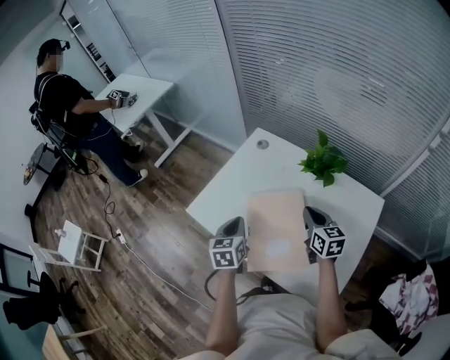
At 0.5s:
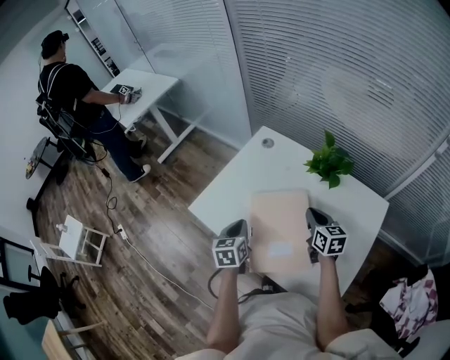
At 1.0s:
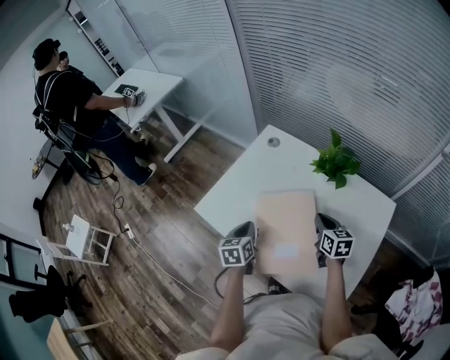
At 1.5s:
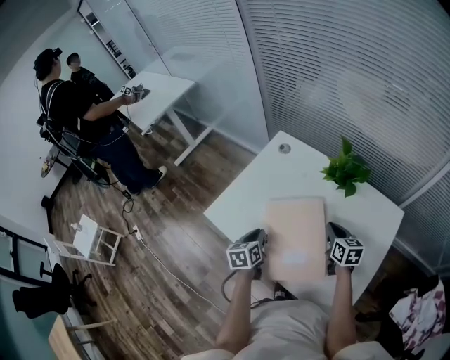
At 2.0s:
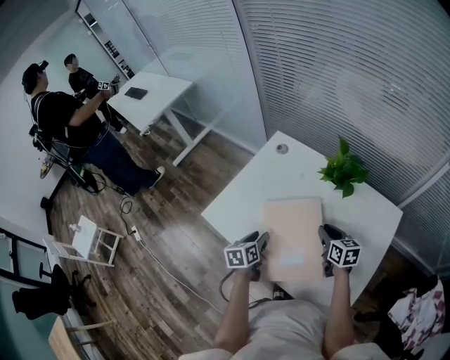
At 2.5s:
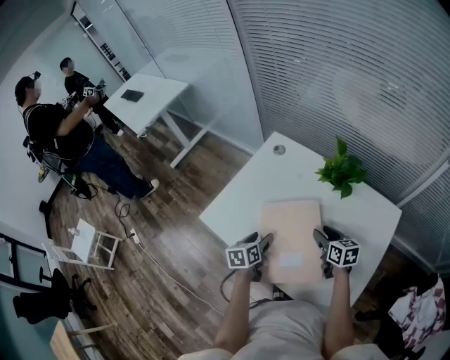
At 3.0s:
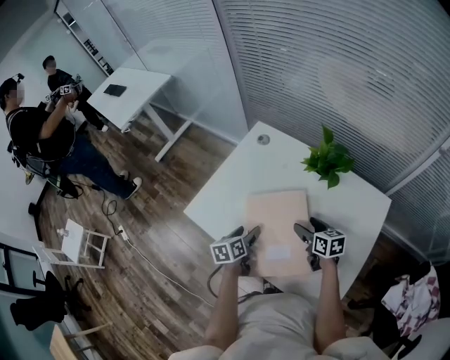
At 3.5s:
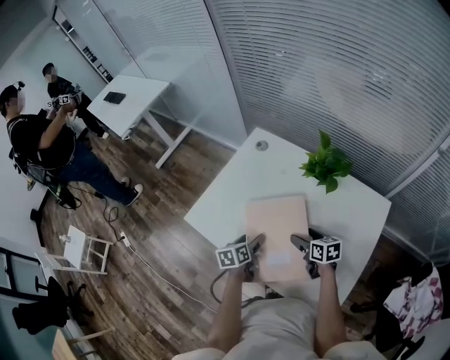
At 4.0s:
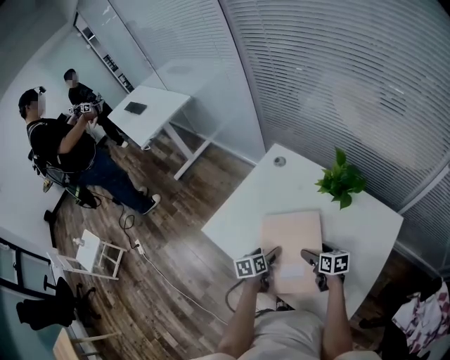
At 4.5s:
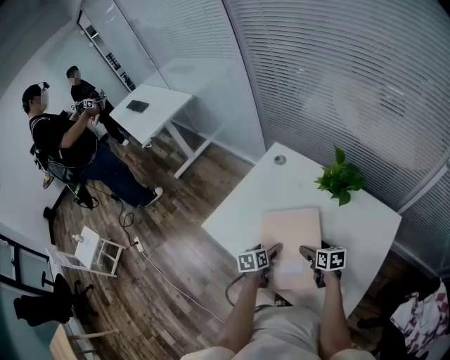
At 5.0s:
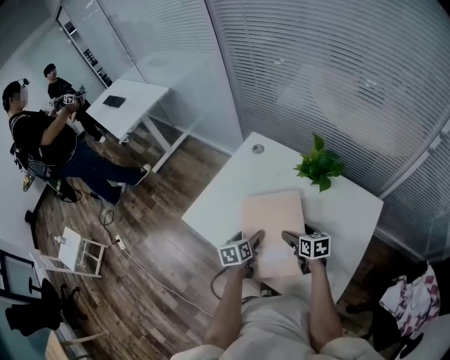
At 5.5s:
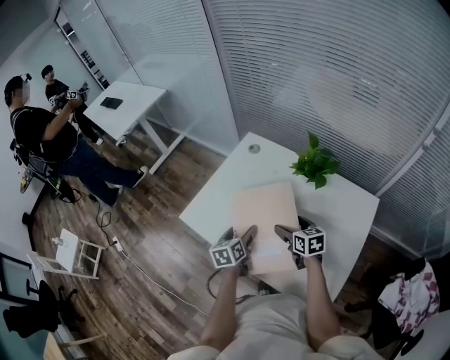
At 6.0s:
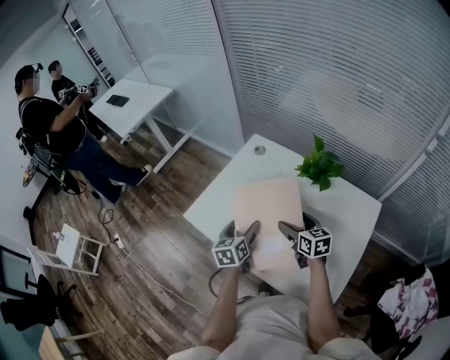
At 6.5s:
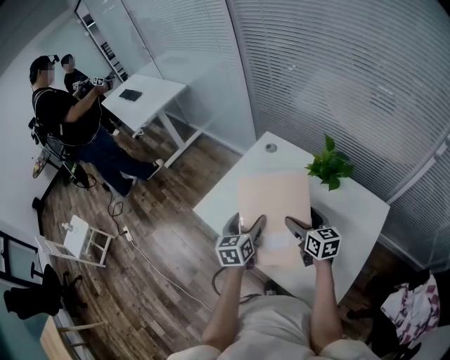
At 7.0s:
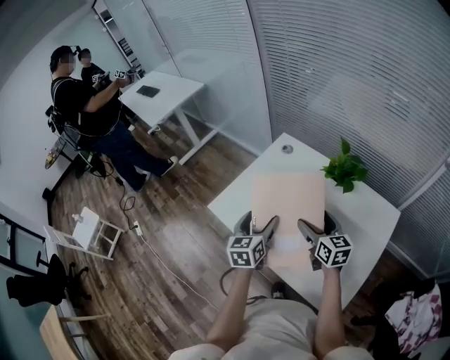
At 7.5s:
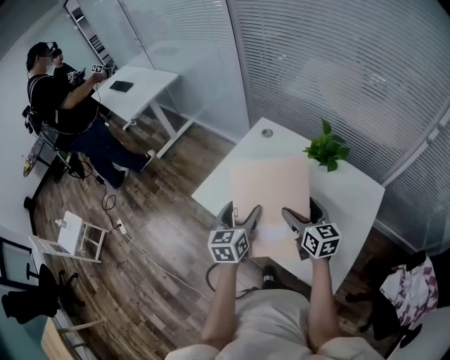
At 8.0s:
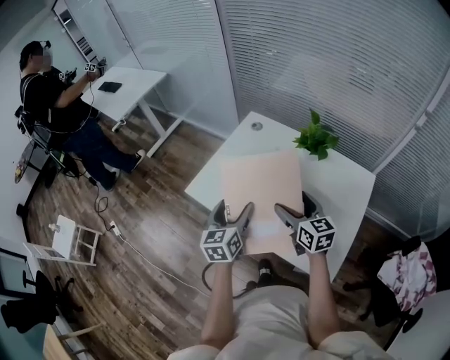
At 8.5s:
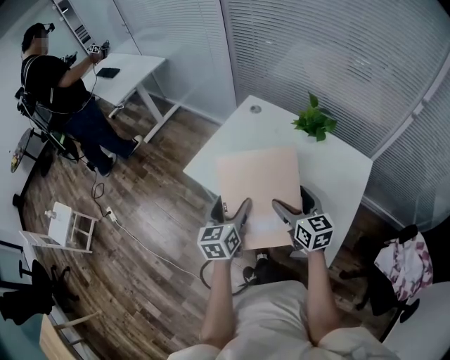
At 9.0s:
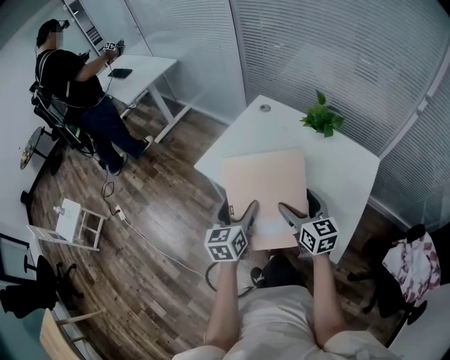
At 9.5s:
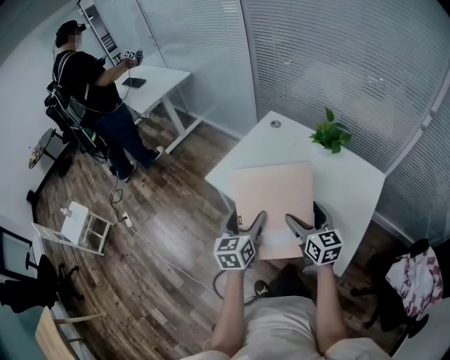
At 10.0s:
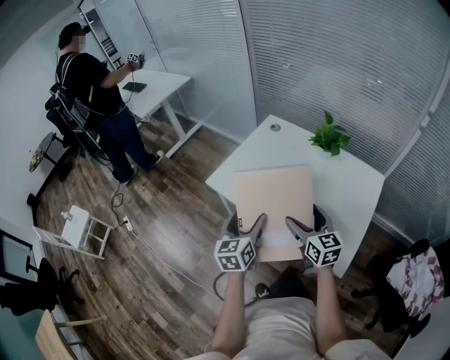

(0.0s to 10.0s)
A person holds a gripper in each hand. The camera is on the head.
0.0s - 2.0s: Both grippers move downward, some 10 cm. The left gripper turns by some 20 degrees, and opens.
2.0s - 4.0s: The two grippers go some 5 cm downward. The right gripper opens. The left gripper opens up.
4.0s - 6.0s: Both grippers travel together upward, about 10 cm. The left gripper changes its angle by approximately 20 degrees.
6.0s - 8.0s: The grippers both shift upward, backward and to the left by approximately 15 cm.
8.0s - 10.0s: The two grippers go some 10 cm backward.

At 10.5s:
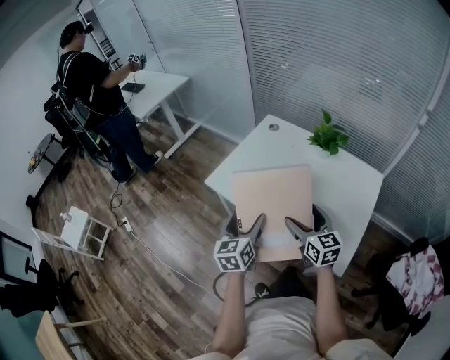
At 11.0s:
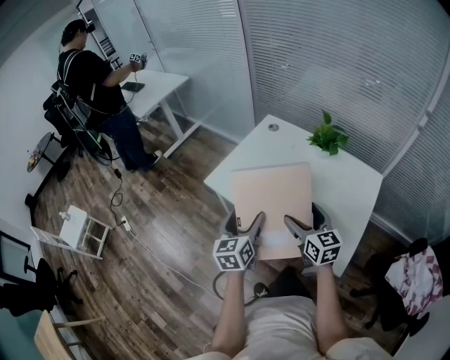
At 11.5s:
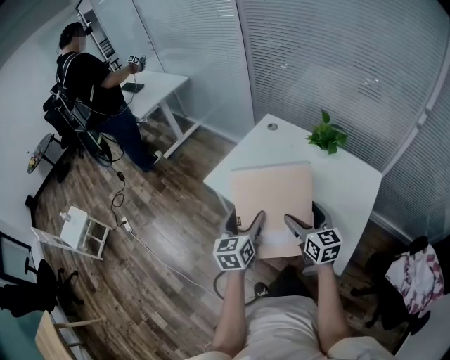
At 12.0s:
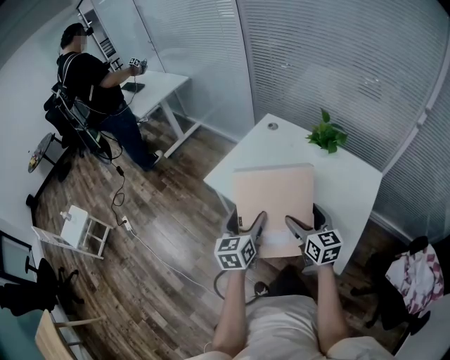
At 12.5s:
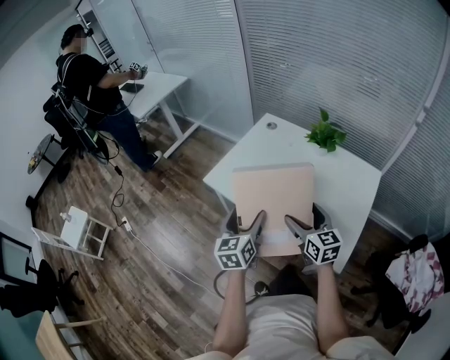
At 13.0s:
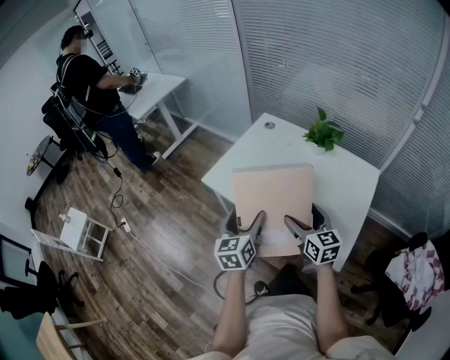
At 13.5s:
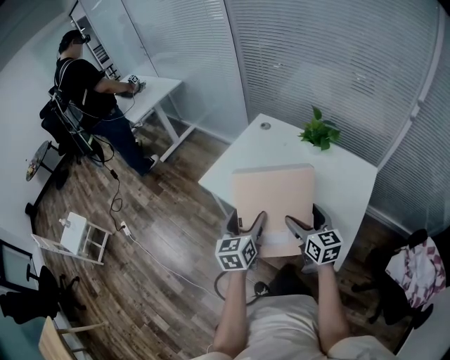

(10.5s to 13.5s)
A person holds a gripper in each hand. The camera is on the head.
10.5s - 12.0s: Both grippers stay put.
12.0s - 13.5s: The grippers move only a little.

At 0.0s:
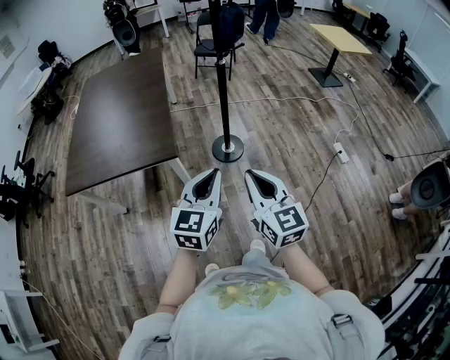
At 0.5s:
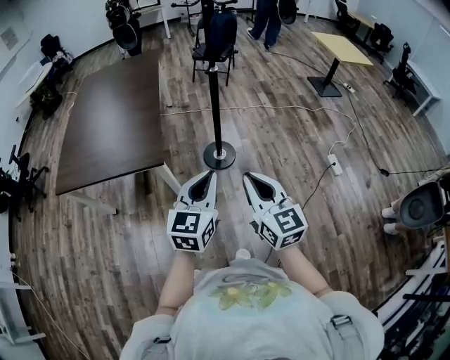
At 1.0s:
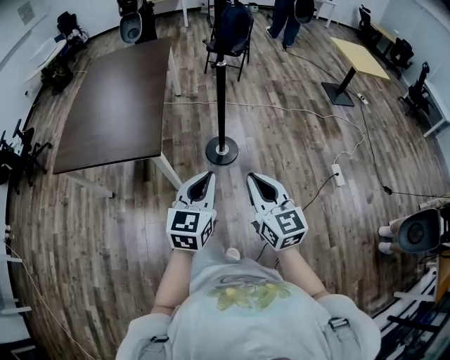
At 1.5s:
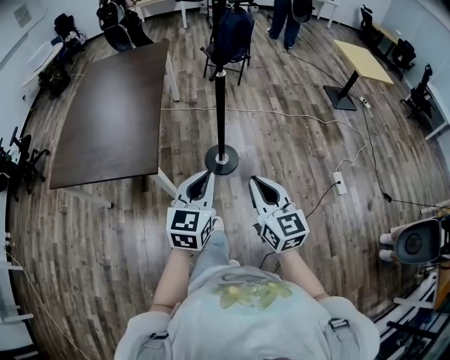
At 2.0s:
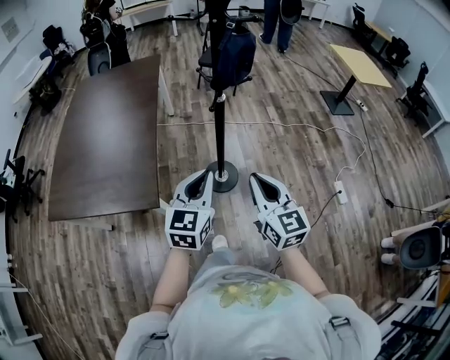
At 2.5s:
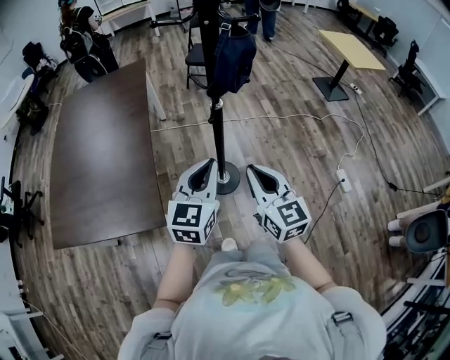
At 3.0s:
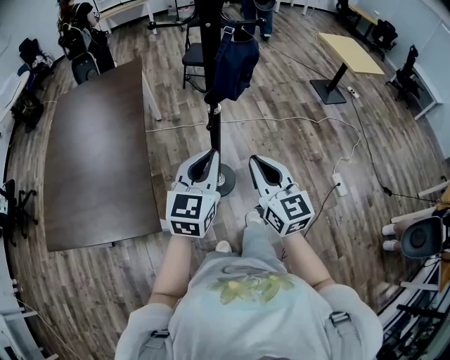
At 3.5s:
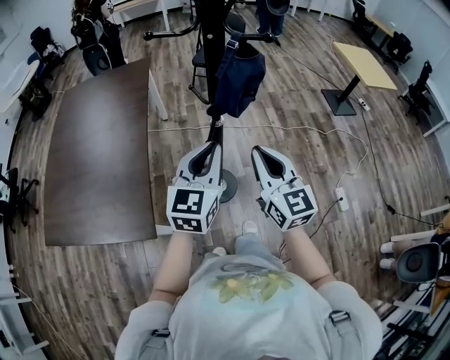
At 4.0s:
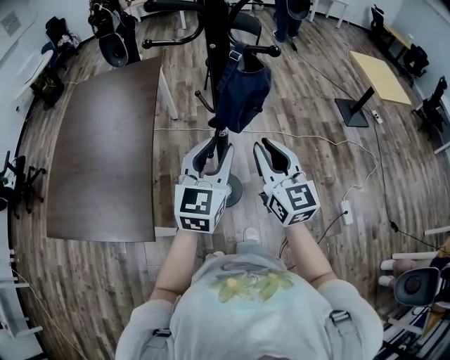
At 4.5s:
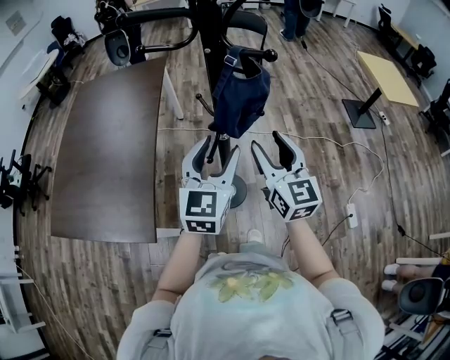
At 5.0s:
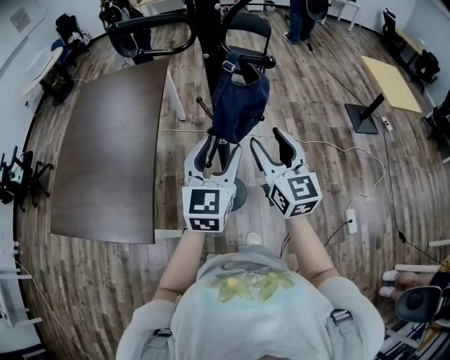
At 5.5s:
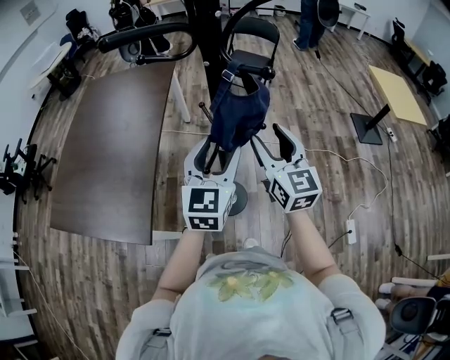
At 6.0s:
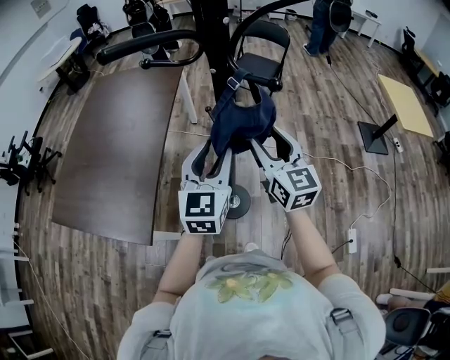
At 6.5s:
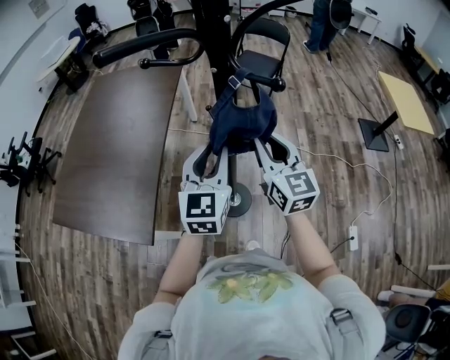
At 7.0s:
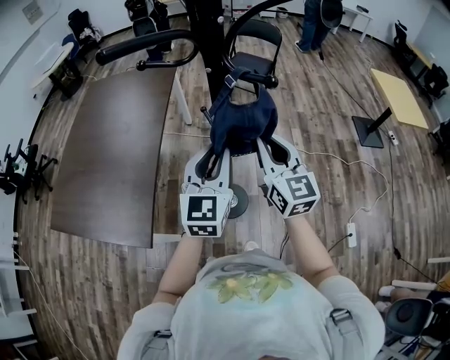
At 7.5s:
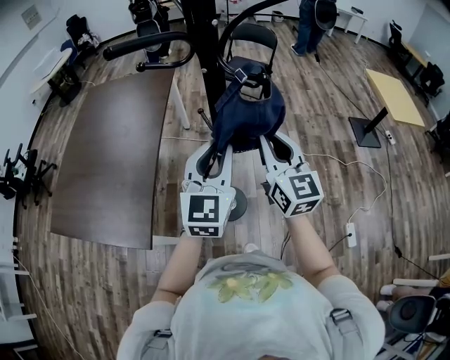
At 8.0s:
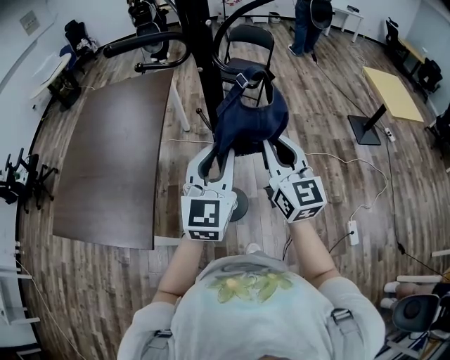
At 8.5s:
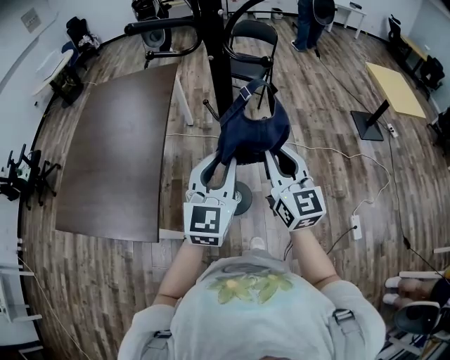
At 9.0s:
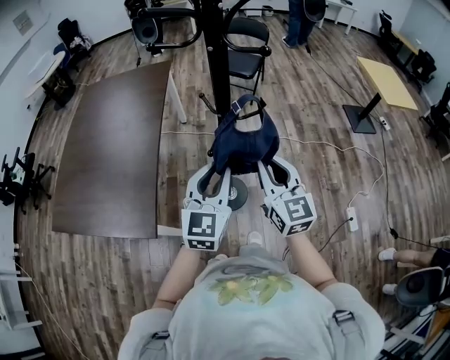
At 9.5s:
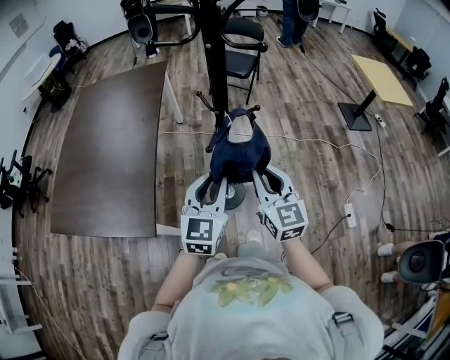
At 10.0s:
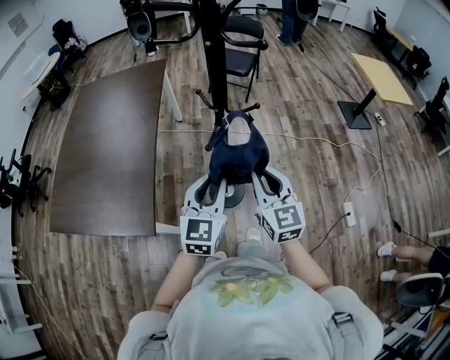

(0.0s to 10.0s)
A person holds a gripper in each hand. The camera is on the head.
0.0s - 2.0s: Both grippers travel together forward, roughly 30 cm.
2.0s - 4.0s: Both grippers travel together forward, about 25 cm. The left gripper opens its fingers.
4.0s - 6.0s: The left gripper is displaced forward by approximately 5 cm. Meanwhile the right gripper is displaced forward by some 10 cm, and opens up.
6.0s - 8.0s: The left gripper changes place by roughly 5 cm, and closes. The right gripper goes roughly 5 cm backward, and closes up.
8.0s - 10.0s: The left gripper goes about 15 cm downward and backward. The right gripper heads backward and downward, covering roughly 15 cm.

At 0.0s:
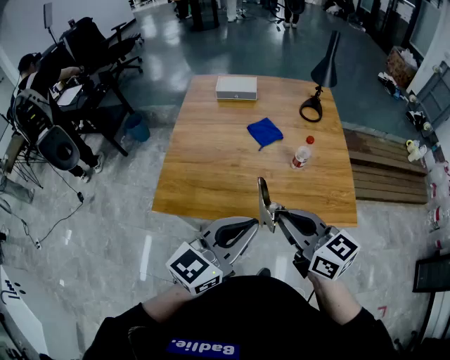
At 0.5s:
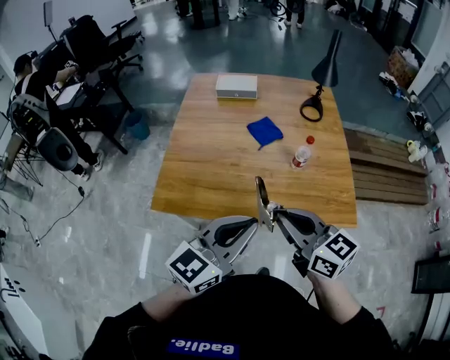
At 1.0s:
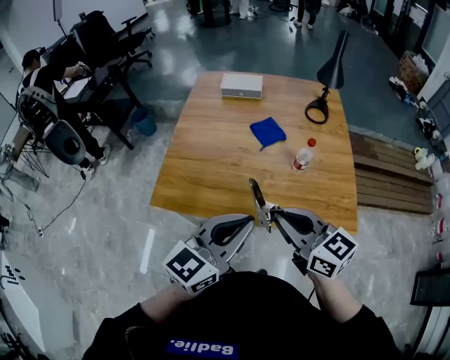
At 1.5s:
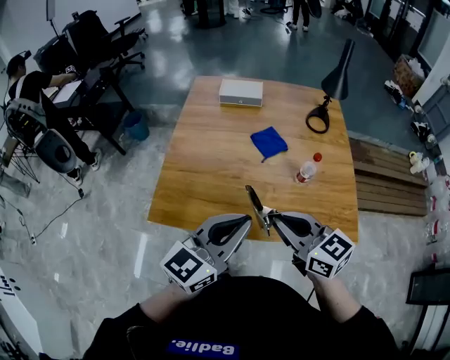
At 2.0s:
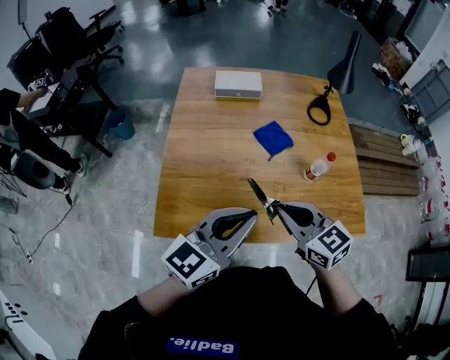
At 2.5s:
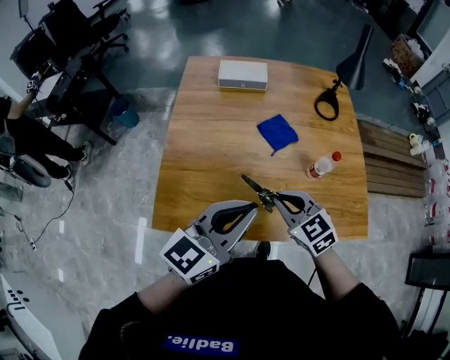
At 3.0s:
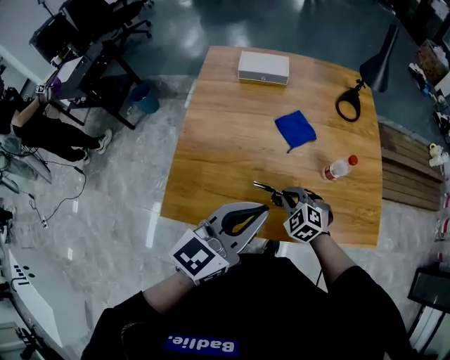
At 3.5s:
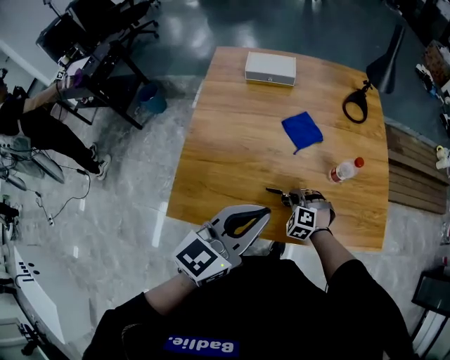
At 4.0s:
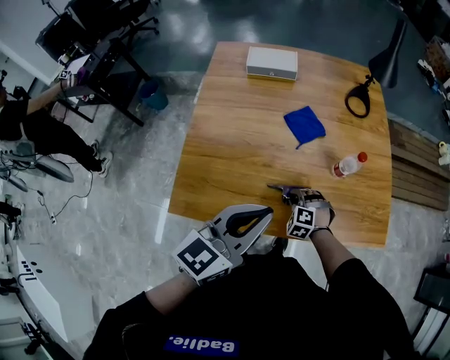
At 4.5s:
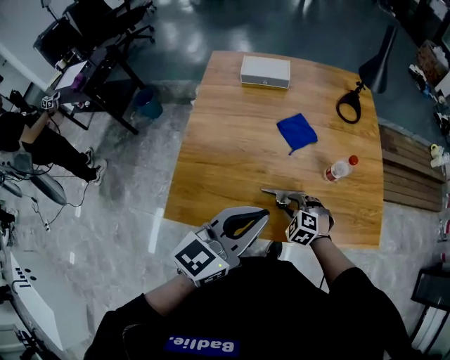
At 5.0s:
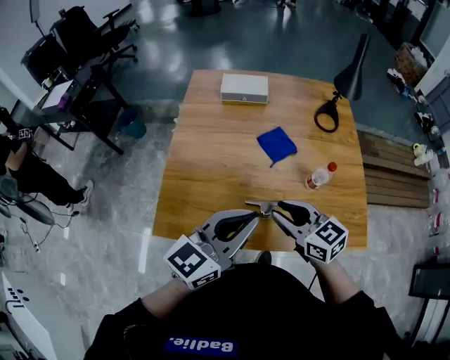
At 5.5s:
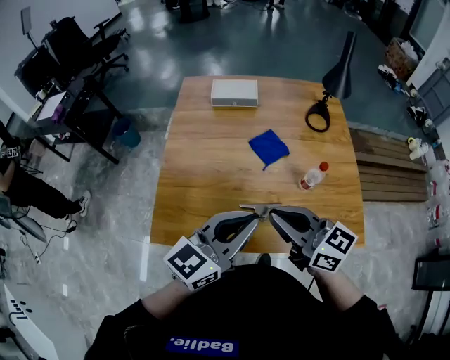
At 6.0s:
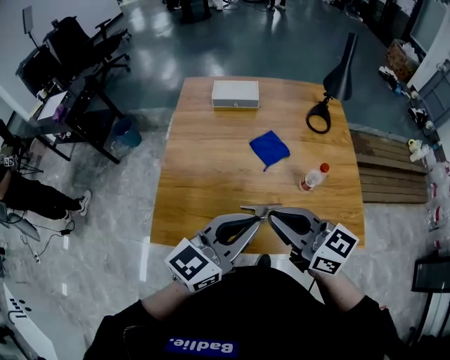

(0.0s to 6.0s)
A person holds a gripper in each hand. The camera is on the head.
0.0s - 2.0s: The left gripper travels forward and to the left by roughly 15 cm, while the right gripper goes approximately 20 cm forward, to the left and downward.
2.0s - 4.0s: The right gripper moves downward, approximately 30 cm, and tips its fingers downward by some 40 degrees.
4.0s - 6.0s: The right gripper heads upward, covering approximately 35 cm, angles its fingers upward, by about 60 degrees, and opens, then closes once more.
